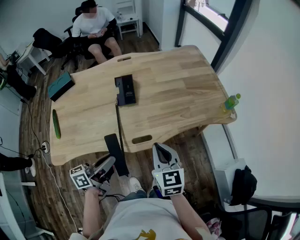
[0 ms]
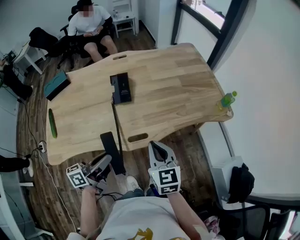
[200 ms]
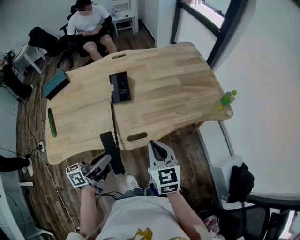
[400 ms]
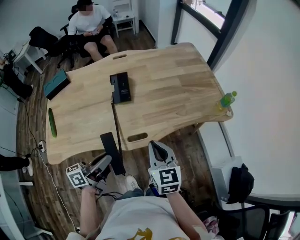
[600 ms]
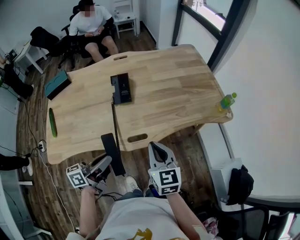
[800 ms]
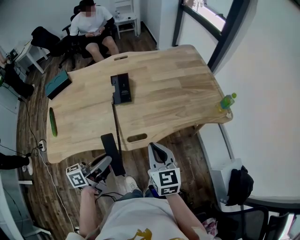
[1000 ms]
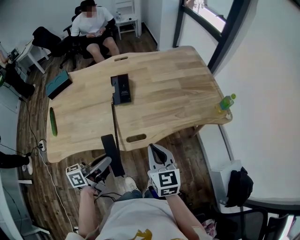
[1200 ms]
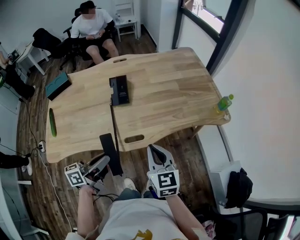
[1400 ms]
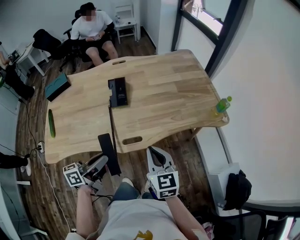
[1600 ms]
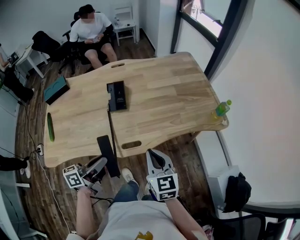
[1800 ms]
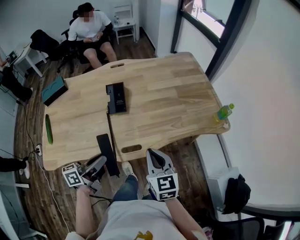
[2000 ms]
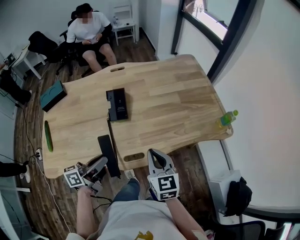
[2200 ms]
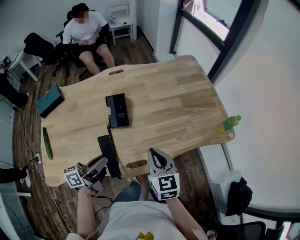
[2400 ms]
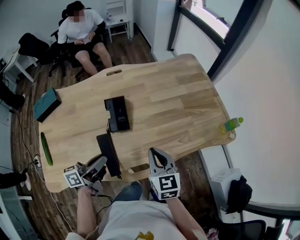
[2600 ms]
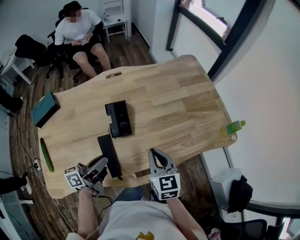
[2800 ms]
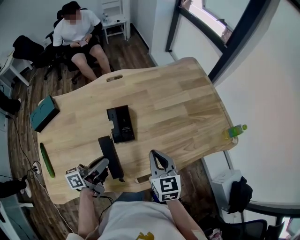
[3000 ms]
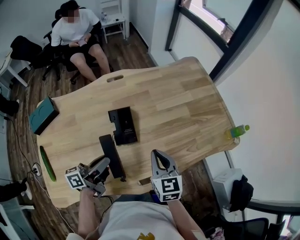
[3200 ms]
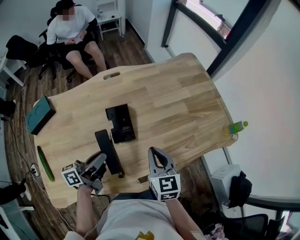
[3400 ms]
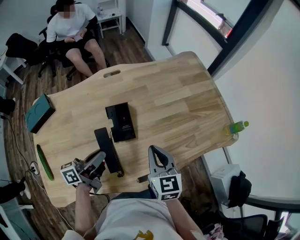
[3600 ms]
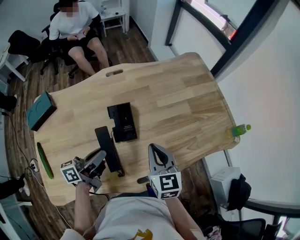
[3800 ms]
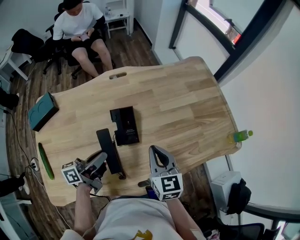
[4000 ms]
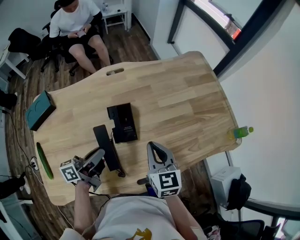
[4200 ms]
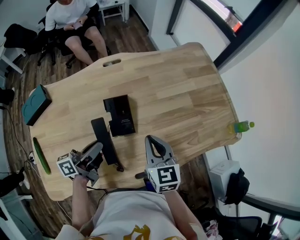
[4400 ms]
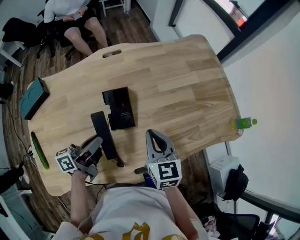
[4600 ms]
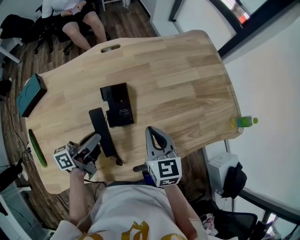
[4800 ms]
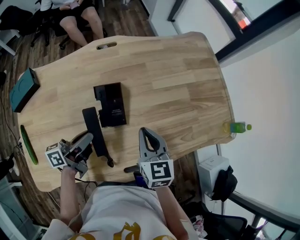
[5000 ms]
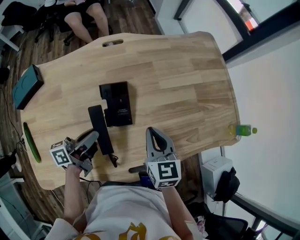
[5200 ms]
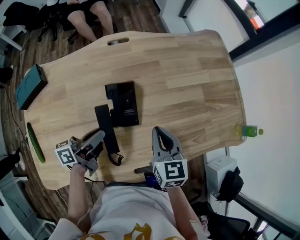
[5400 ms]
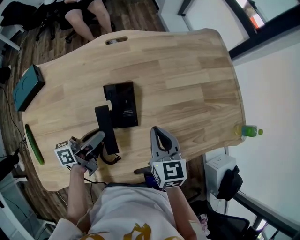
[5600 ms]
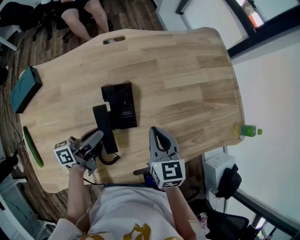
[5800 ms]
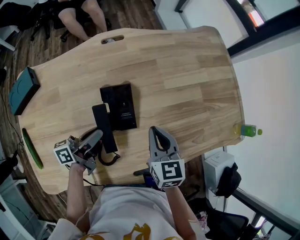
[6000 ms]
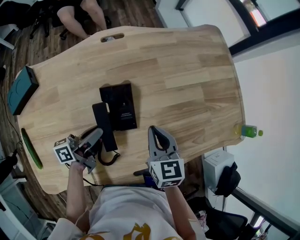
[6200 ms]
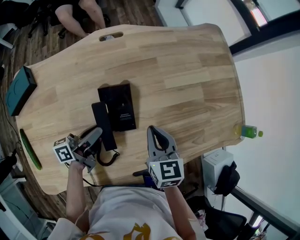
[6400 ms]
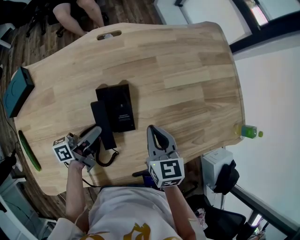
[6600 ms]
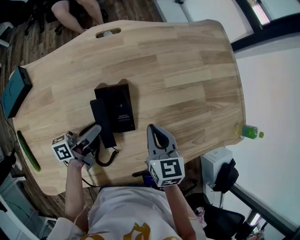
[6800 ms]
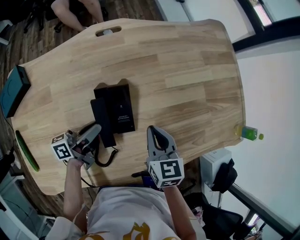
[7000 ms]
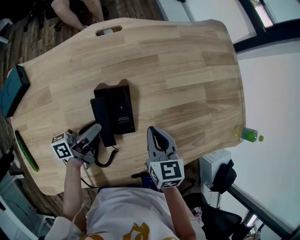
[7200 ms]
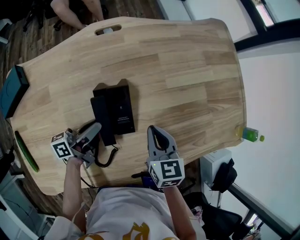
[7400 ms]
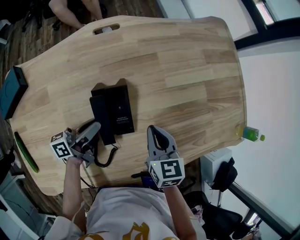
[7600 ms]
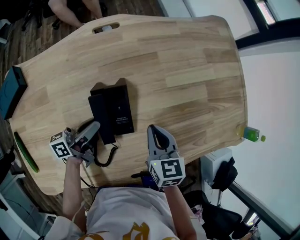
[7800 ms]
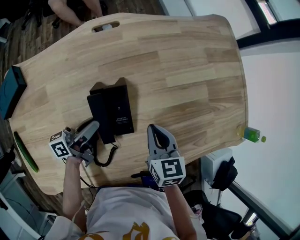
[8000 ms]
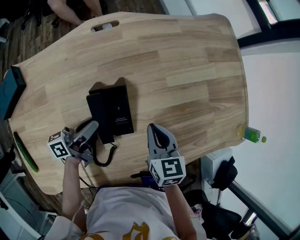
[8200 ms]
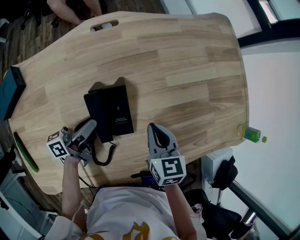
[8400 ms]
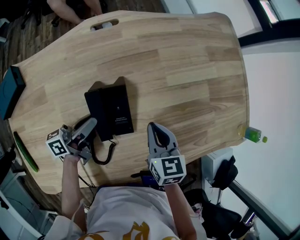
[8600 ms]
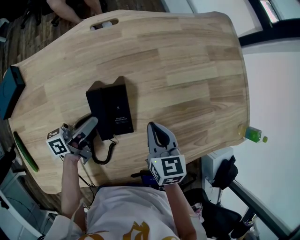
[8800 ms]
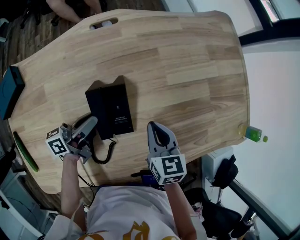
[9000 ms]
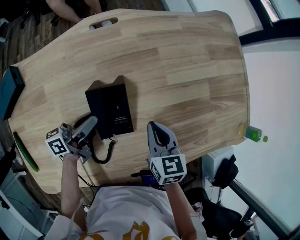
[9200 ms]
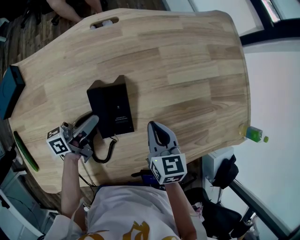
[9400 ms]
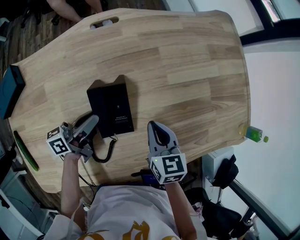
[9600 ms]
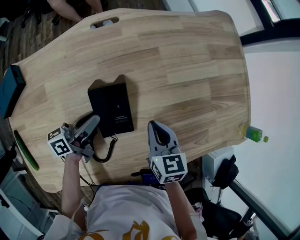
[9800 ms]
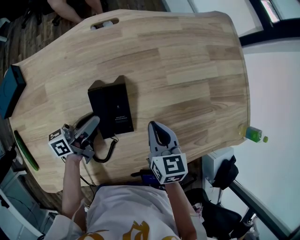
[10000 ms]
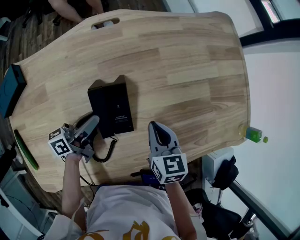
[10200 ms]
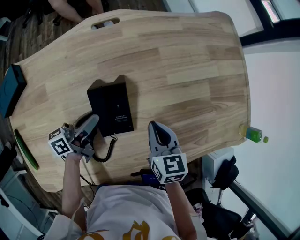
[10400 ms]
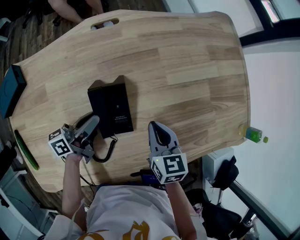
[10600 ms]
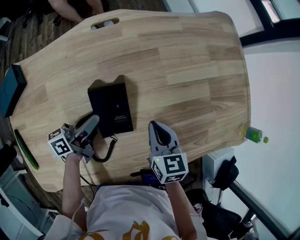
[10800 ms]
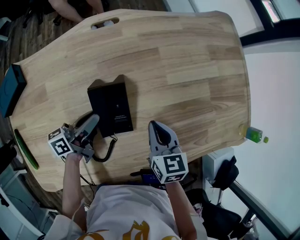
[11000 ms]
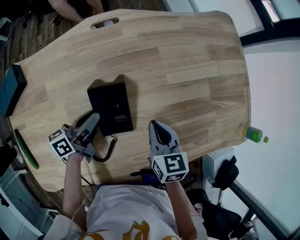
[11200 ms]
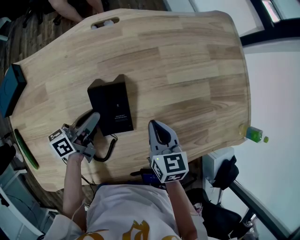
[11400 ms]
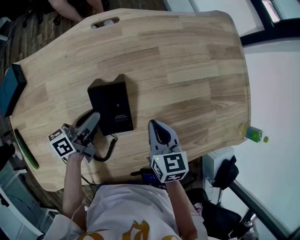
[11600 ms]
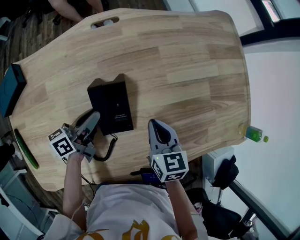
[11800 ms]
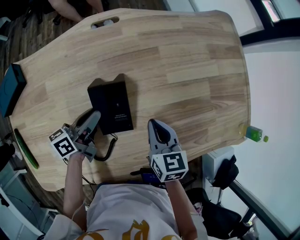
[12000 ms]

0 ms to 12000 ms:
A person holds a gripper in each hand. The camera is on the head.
0 ms to 1600 ms: There are only small adjustments of the grippers.
1600 ms to 3000 ms: The two grippers go about 20 cm forward and to the left.
3000 ms to 4400 ms: The right gripper ends up approximately 5 cm from where it was. The left gripper heads forward, covering approximately 5 cm.
4400 ms to 6000 ms: The two grippers go approximately 5 cm downward.
6000 ms to 7600 ms: The right gripper moves approximately 5 cm. The left gripper changes place by some 5 cm.
7600 ms to 9000 ms: There are only small adjustments of the grippers.
9000 ms to 10400 ms: Both grippers stay about where they are.
10400 ms to 12000 ms: The grippers move only a little.

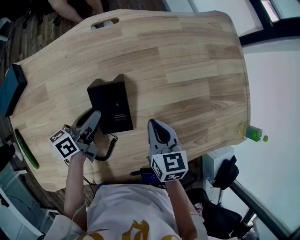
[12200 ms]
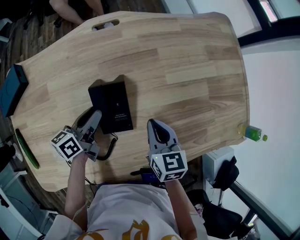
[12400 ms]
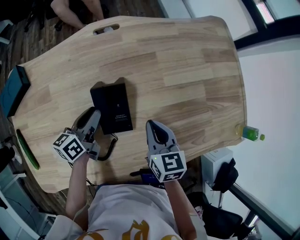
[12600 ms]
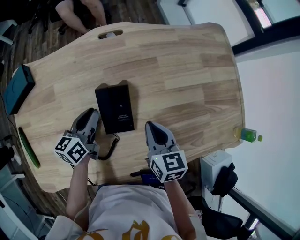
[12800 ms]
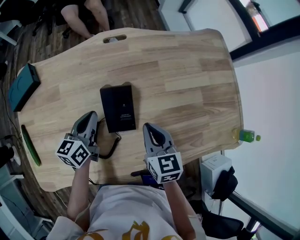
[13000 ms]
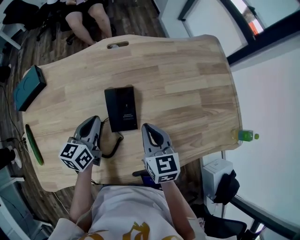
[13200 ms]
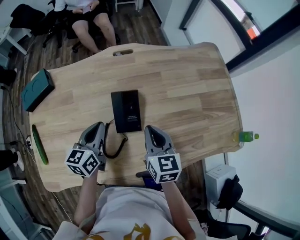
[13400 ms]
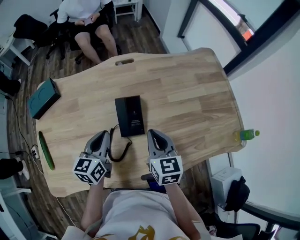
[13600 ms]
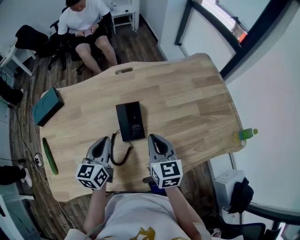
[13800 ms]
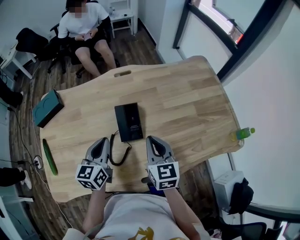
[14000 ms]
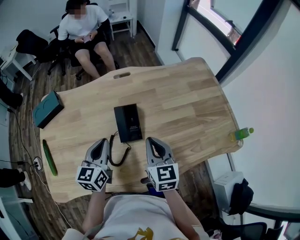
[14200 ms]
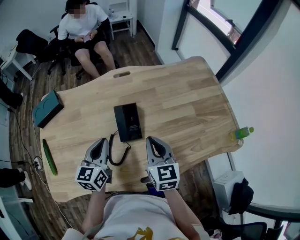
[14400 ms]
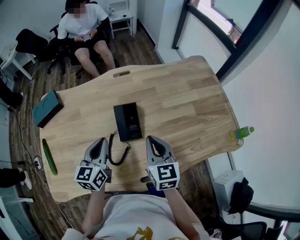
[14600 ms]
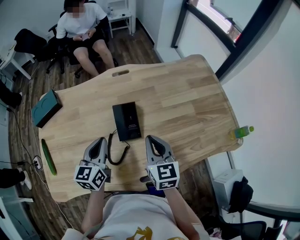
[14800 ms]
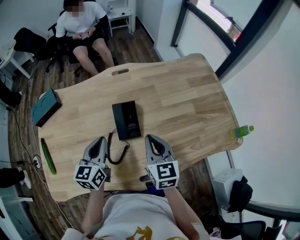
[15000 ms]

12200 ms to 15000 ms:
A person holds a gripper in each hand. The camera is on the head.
12200 ms to 13600 ms: The left gripper goes about 15 cm upward and backward, and rotates some 40 degrees; the right gripper shifts some 10 cm upward.
13600 ms to 15000 ms: The grippers make only small movements.

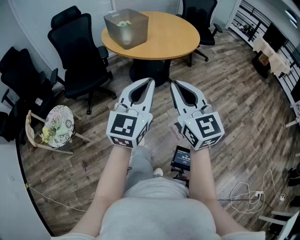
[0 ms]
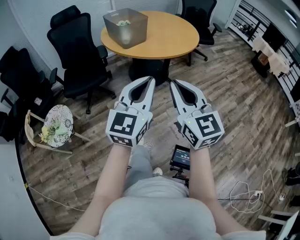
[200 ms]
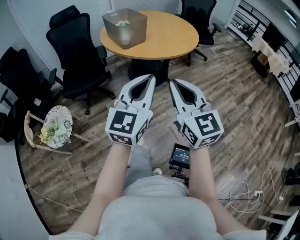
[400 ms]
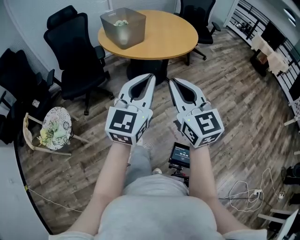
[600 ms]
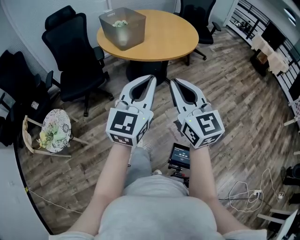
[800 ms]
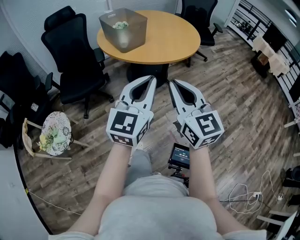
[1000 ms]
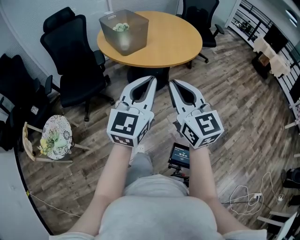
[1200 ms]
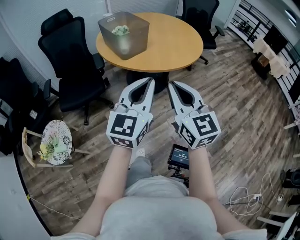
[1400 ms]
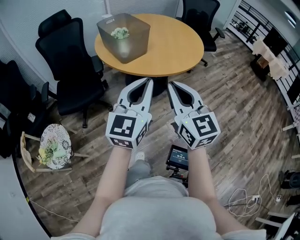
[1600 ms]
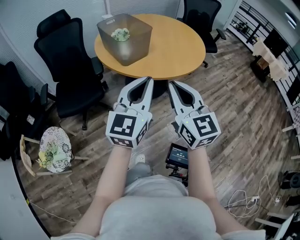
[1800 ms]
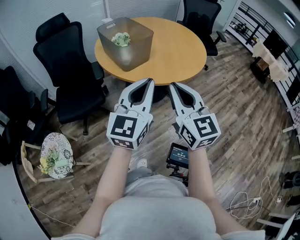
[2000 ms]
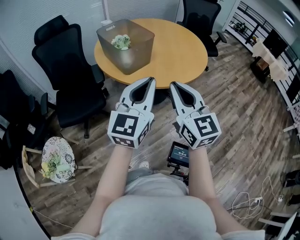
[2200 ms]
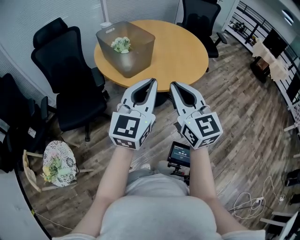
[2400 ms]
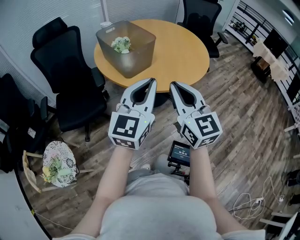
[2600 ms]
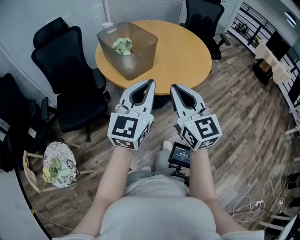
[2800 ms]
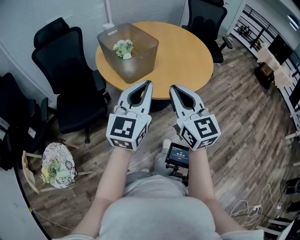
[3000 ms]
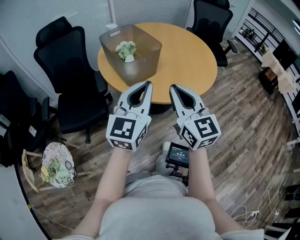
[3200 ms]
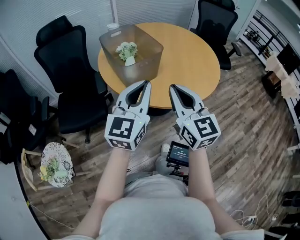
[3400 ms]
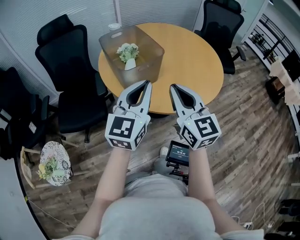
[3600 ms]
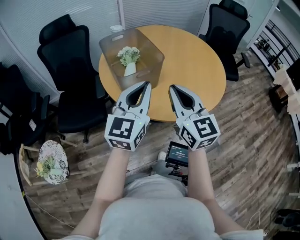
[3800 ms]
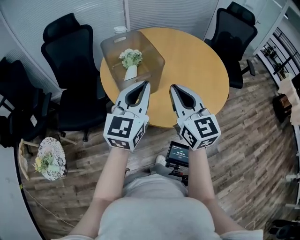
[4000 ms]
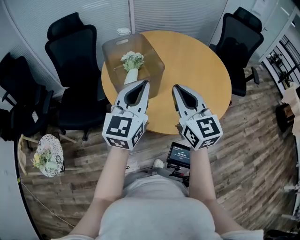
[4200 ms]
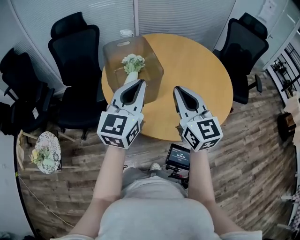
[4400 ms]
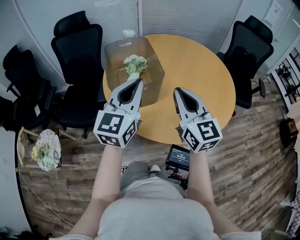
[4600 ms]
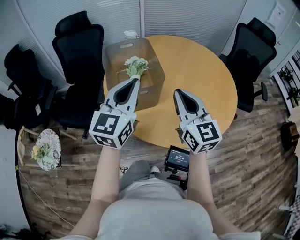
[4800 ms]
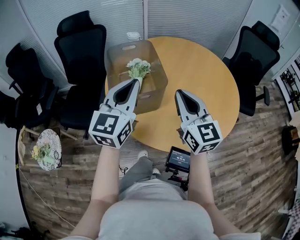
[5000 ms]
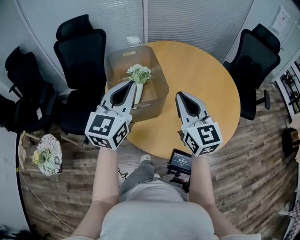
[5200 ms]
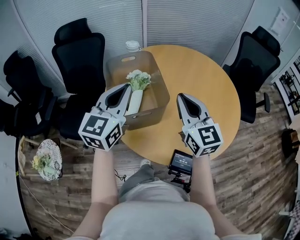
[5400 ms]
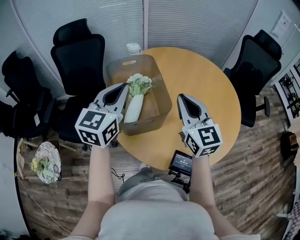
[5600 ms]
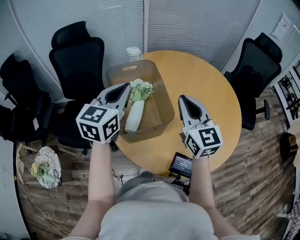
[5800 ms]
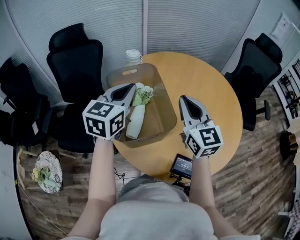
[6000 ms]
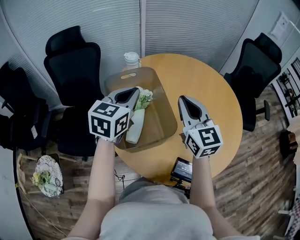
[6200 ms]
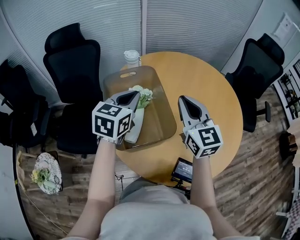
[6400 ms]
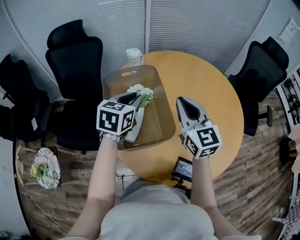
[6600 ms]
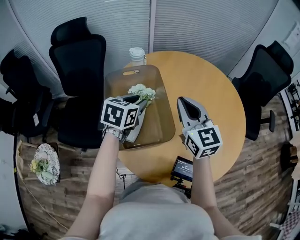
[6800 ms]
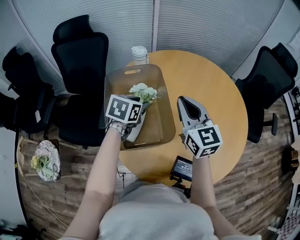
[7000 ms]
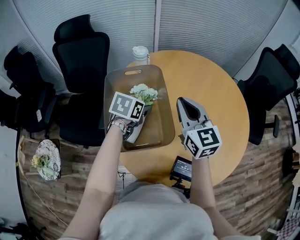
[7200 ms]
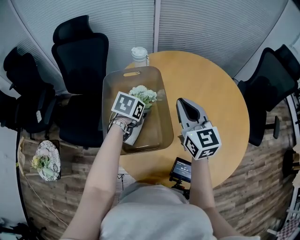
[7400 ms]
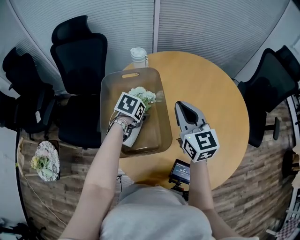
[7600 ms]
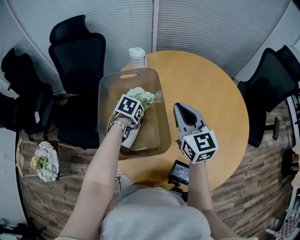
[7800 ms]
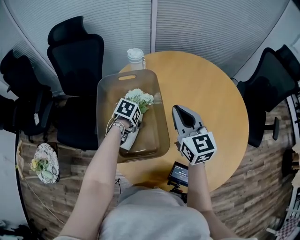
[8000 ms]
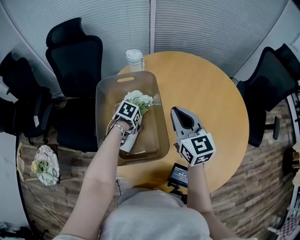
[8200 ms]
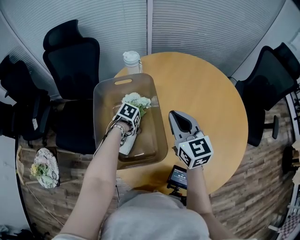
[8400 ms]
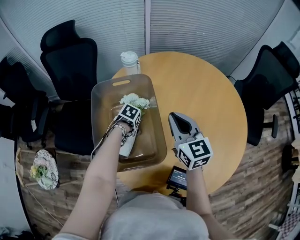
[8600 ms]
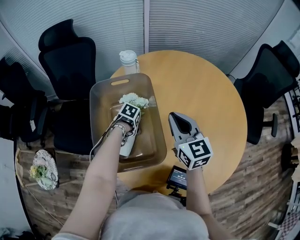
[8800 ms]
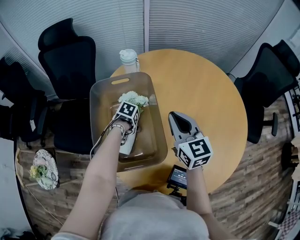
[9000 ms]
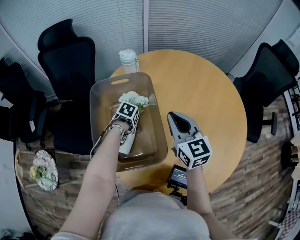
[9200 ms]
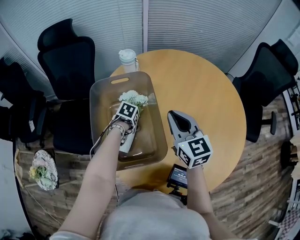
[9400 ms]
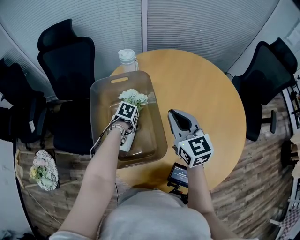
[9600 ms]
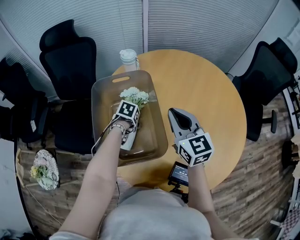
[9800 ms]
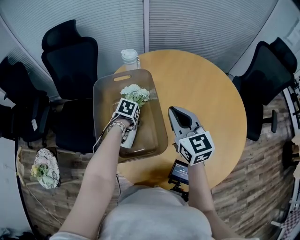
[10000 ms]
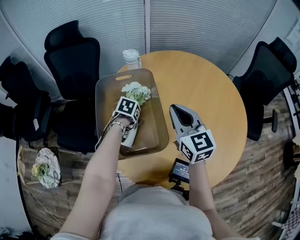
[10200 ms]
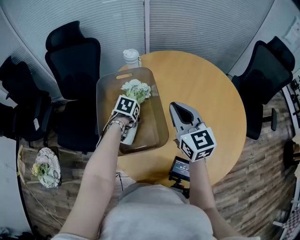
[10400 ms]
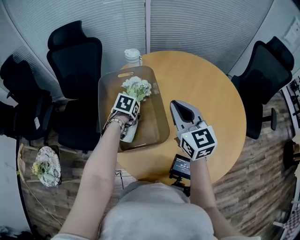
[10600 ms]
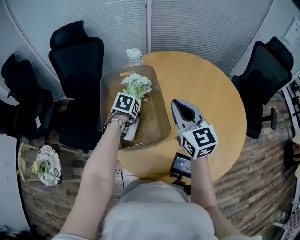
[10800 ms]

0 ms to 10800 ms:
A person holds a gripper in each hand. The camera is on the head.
0 ms to 1600 ms: The two grippers go about 20 cm forward.
1600 ms to 3000 ms: The grippers both shift forward by some 15 cm.
3000 ms to 4600 ms: The left gripper shifts approximately 20 cm forward, and swivels some 20 degrees; the right gripper goes approximately 25 cm forward and to the right, and rotates about 20 degrees.
4600 ms to 6200 ms: Both grippers travel together forward, roughly 20 cm. The left gripper swivels about 20 degrees.
6200 ms to 7800 ms: The right gripper travels forward and downward by approximately 10 cm, while the left gripper goes some 25 cm downward, tips its fingers downward by some 50 degrees, and opens up.
7800 ms to 9200 ms: The left gripper travels downward by roughly 10 cm.
9200 ms to 10800 ms: The left gripper shifts some 10 cm upward, and turns by approximately 20 degrees; the right gripper travels upward by roughly 5 cm.
